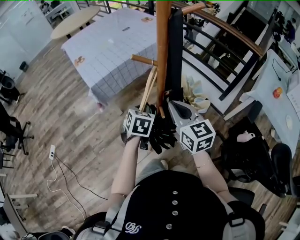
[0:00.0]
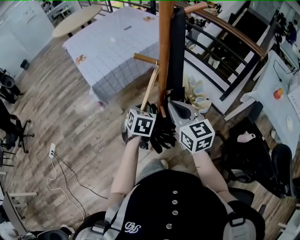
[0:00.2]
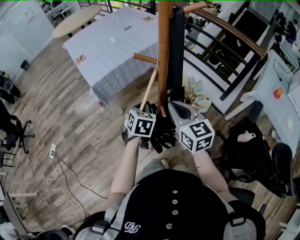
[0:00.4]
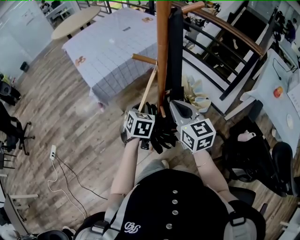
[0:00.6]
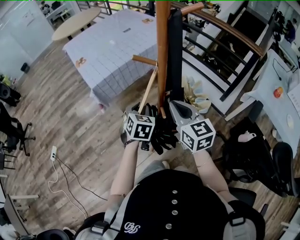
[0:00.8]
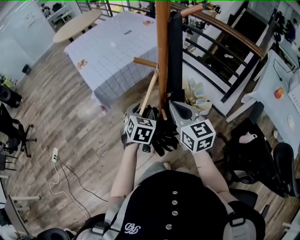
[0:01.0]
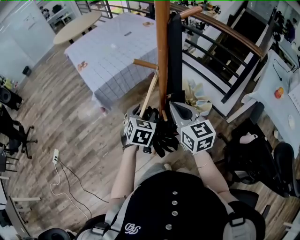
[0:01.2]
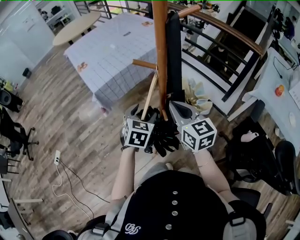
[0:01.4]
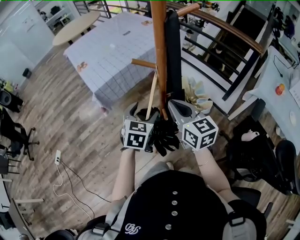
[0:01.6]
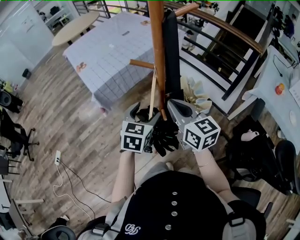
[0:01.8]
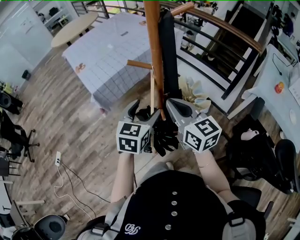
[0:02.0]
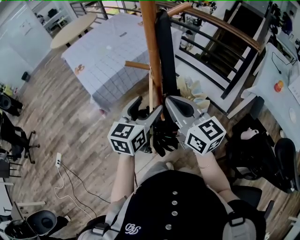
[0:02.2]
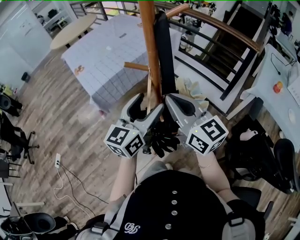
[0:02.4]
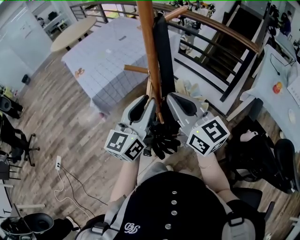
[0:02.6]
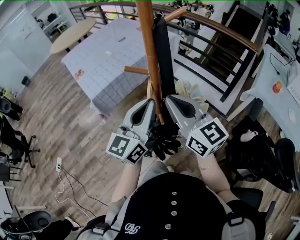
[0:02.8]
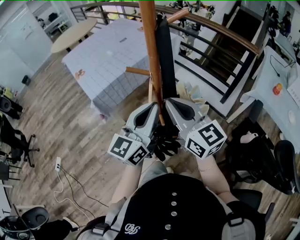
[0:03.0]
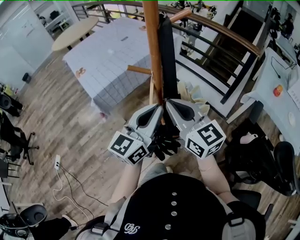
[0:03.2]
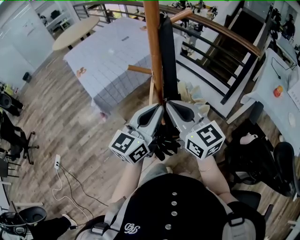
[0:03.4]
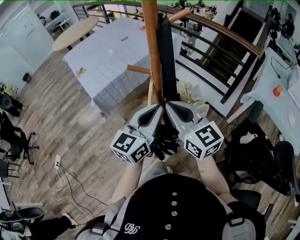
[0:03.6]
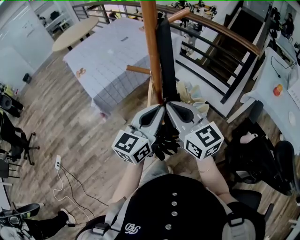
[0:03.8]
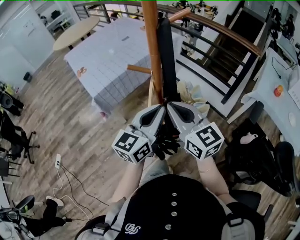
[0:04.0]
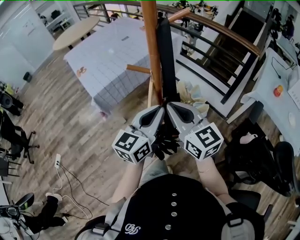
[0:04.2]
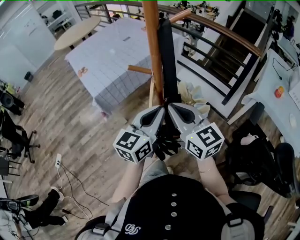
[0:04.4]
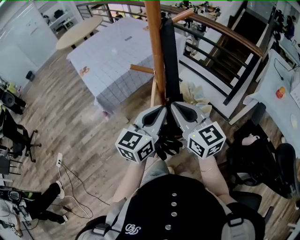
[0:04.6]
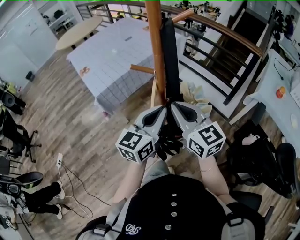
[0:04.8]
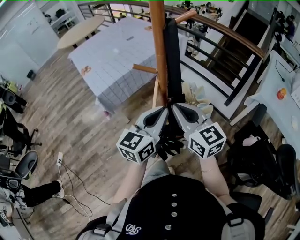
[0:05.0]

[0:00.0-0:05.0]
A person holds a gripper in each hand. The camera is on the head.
0:00.0 to 0:01.6: The left gripper travels upward by roughly 5 cm, and opens its fingers.
0:01.6 to 0:03.4: The right gripper moves upward, some 5 cm; the left gripper heads upward and to the right, covering about 15 cm, tips its fingers upward by roughly 40 degrees, and closes its fingers.
0:03.4 to 0:05.0: There are only small adjustments of the grippers.

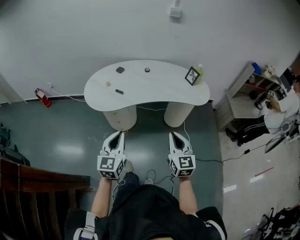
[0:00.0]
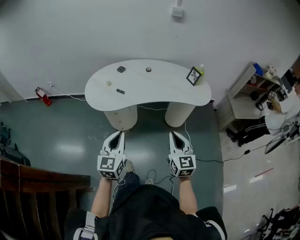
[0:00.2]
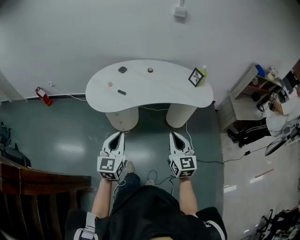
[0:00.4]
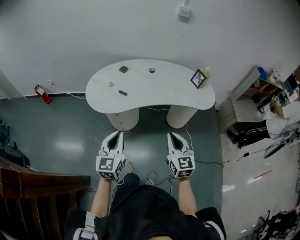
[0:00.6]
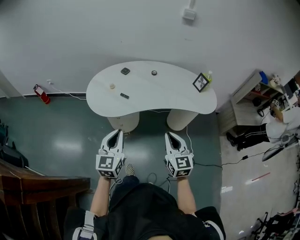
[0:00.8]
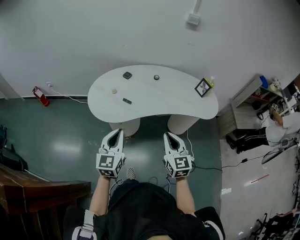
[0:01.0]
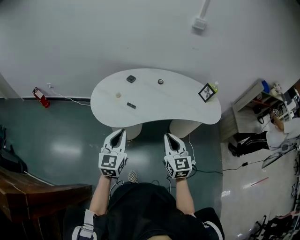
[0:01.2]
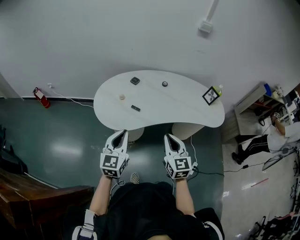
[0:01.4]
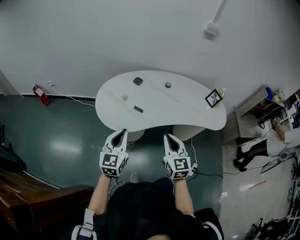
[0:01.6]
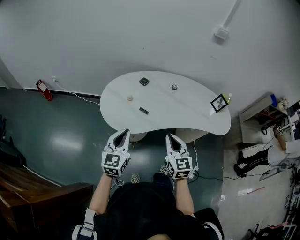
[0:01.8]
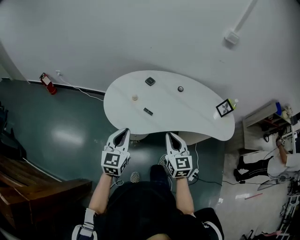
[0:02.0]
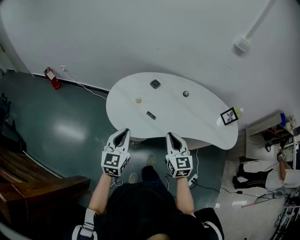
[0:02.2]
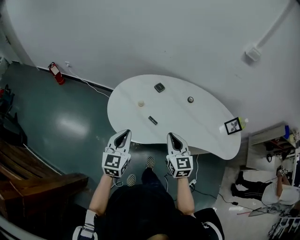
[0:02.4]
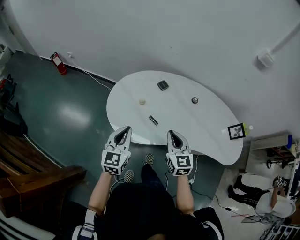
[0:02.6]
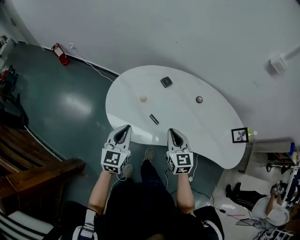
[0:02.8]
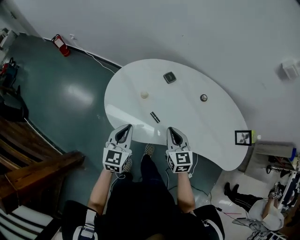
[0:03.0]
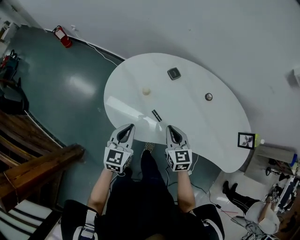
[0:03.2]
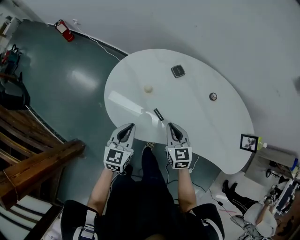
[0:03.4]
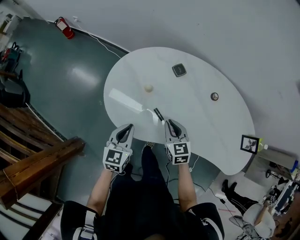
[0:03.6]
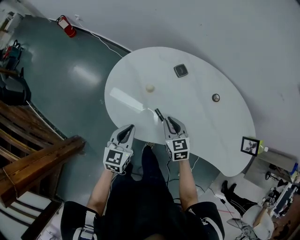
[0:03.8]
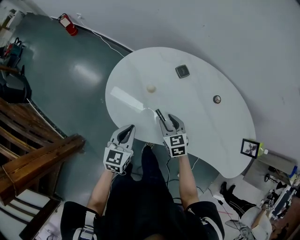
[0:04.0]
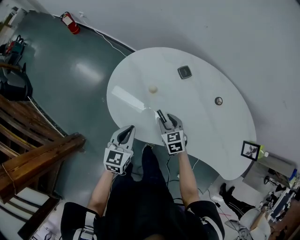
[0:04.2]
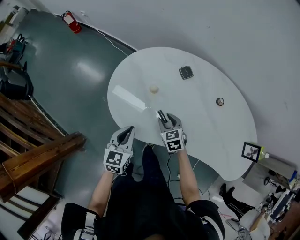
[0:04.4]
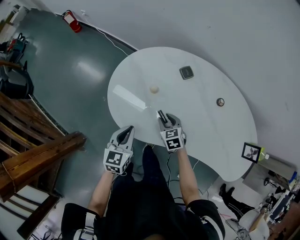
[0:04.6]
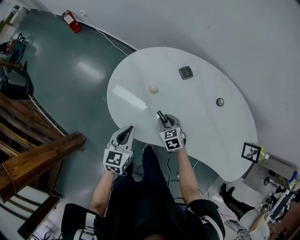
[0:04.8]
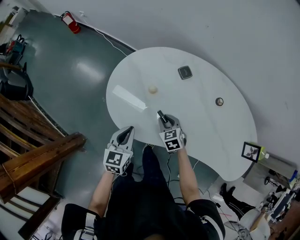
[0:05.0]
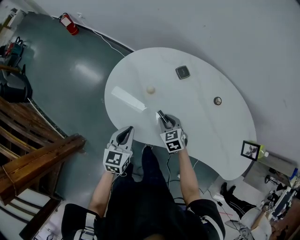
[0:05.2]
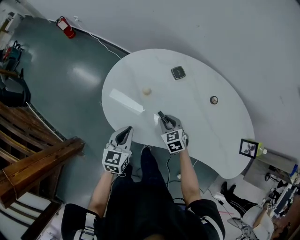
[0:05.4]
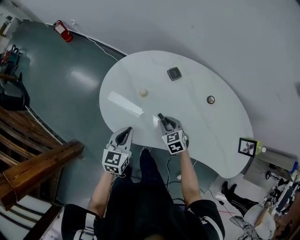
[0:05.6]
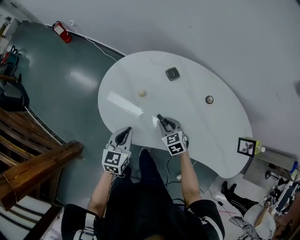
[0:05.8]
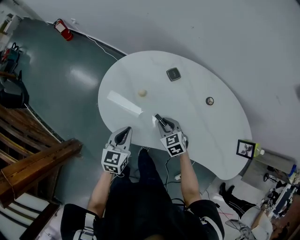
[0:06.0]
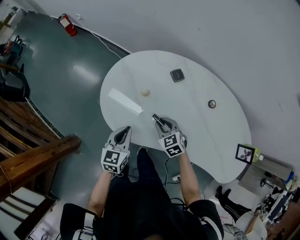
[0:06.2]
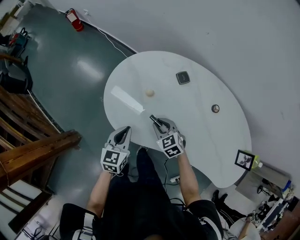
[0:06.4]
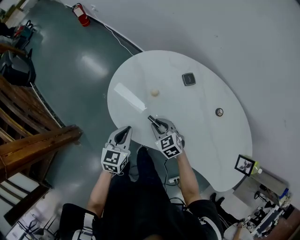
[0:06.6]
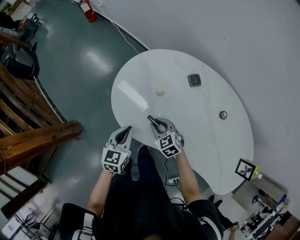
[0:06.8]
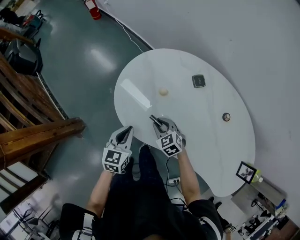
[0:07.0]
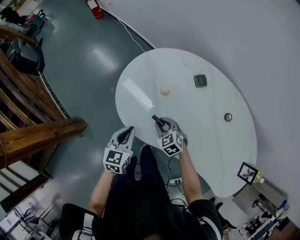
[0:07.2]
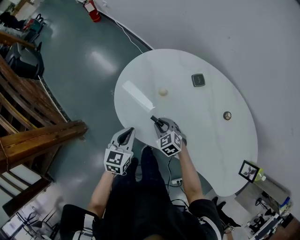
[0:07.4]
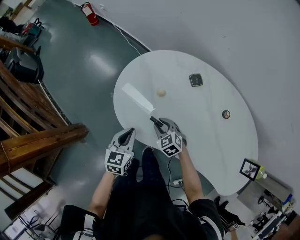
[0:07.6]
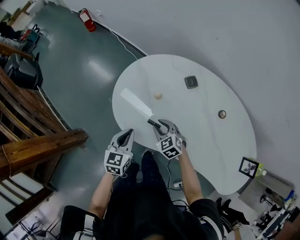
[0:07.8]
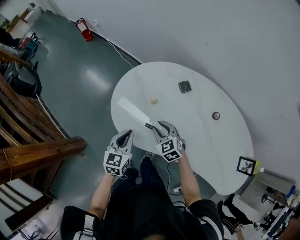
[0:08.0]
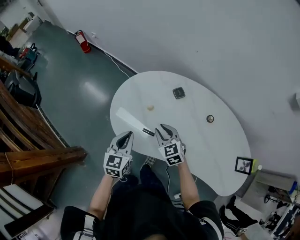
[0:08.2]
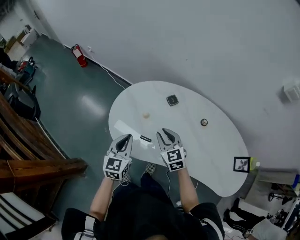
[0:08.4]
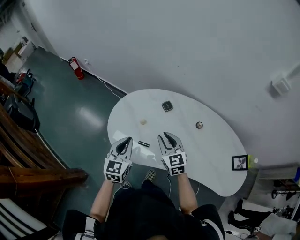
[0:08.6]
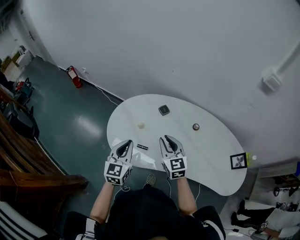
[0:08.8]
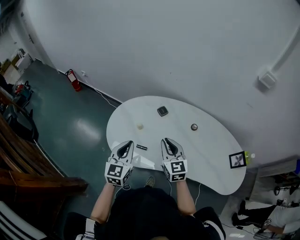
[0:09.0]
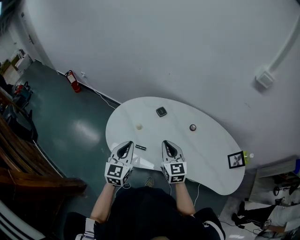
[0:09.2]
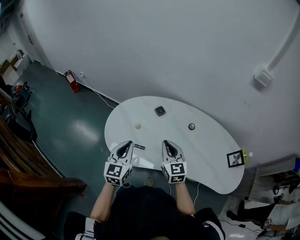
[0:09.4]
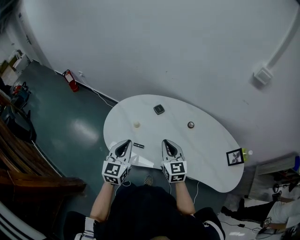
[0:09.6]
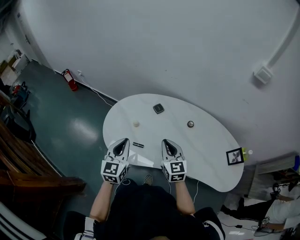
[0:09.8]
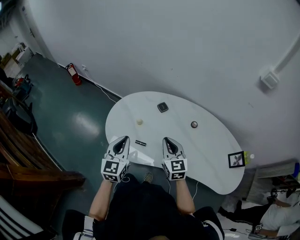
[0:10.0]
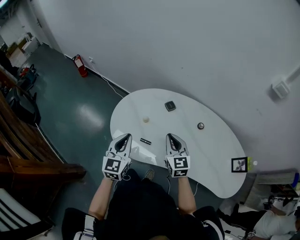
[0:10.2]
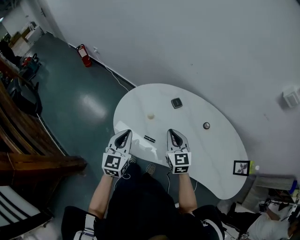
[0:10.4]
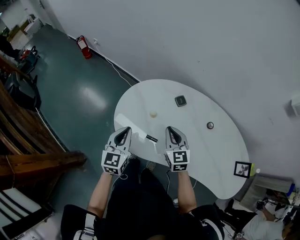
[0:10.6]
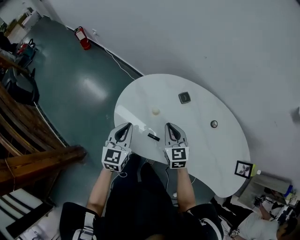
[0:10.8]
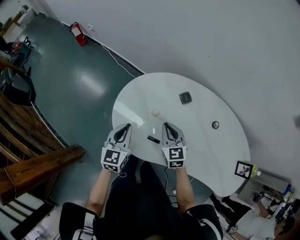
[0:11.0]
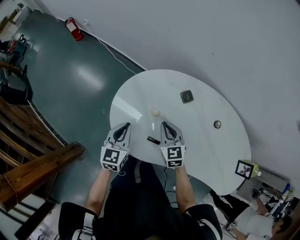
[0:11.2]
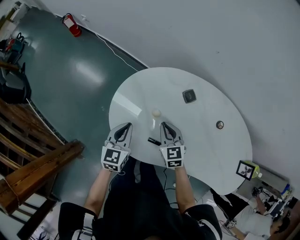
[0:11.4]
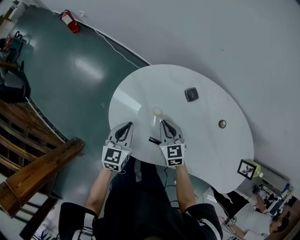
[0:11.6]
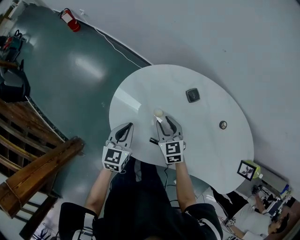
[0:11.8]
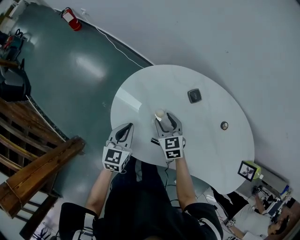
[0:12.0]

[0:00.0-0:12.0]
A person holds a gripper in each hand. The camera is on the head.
0:00.0 to 0:01.6: The left gripper moves forward and to the left, approximately 30 cm. Meanwhile the right gripper is displaced to the left and forward by some 30 cm.
0:01.6 to 0:03.0: Both grippers travel together forward and downward, roughly 25 cm. The left gripper turns by approximately 20 degrees. Meanwhile the right gripper rotates about 30 degrees.
0:03.0 to 0:04.4: The left gripper is displaced downward by some 10 cm. Meanwhile the right gripper moves downward and forward, about 20 cm, swivels about 30 degrees, and opens its fingers.
0:04.4 to 0:06.0: The right gripper ends up approximately 5 cm from where it was.
0:06.0 to 0:07.6: The right gripper shifts roughly 10 cm to the left, and turns by roughly 20 degrees.
0:07.6 to 0:09.0: The left gripper goes approximately 20 cm upward, and changes its angle by some 30 degrees. The right gripper moves upward and to the right, some 30 cm, and tilts its fingers about 30 degrees upward.
0:09.0 to 0:10.4: The left gripper is displaced to the left by roughly 5 cm. Meanwhile the right gripper goes approximately 5 cm forward.
0:10.4 to 0:12.0: The right gripper is displaced downward, forward and to the left by roughly 25 cm, turns by some 20 degrees, and opens up, while the left gripper travels downward and forward by approximately 20 cm.

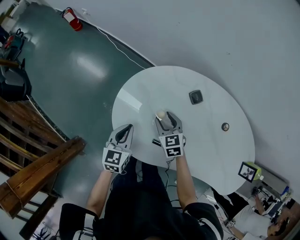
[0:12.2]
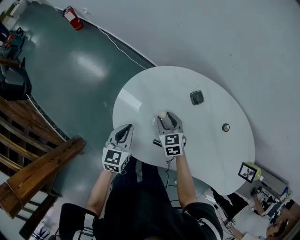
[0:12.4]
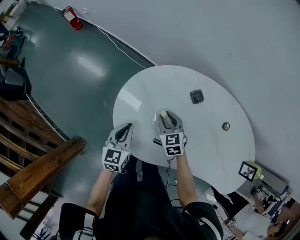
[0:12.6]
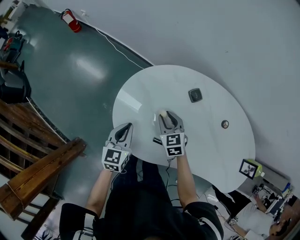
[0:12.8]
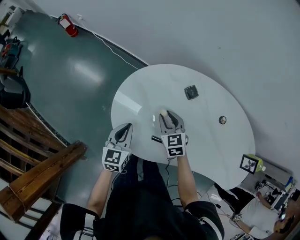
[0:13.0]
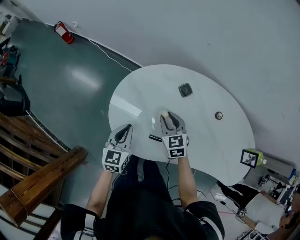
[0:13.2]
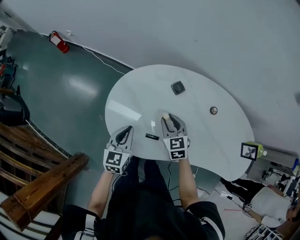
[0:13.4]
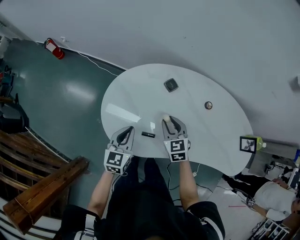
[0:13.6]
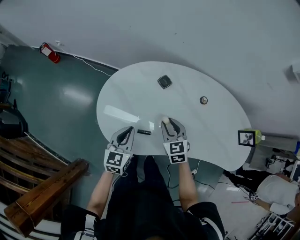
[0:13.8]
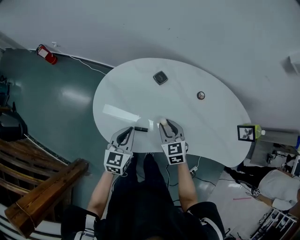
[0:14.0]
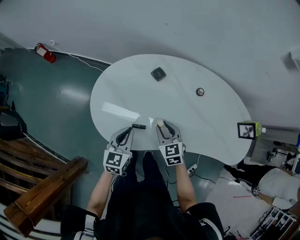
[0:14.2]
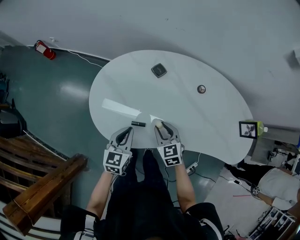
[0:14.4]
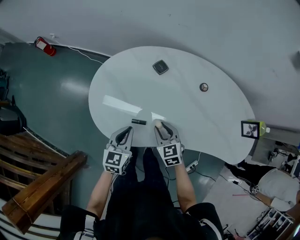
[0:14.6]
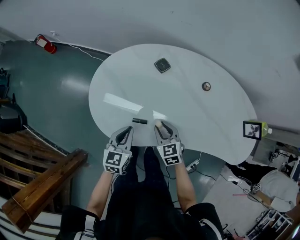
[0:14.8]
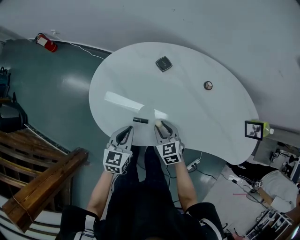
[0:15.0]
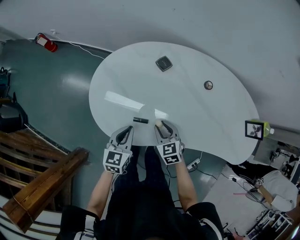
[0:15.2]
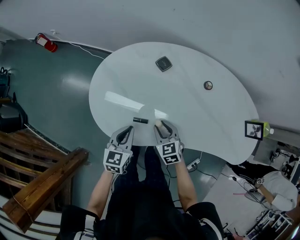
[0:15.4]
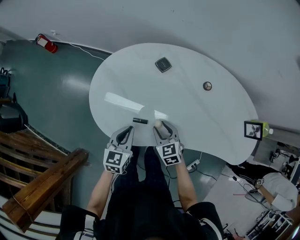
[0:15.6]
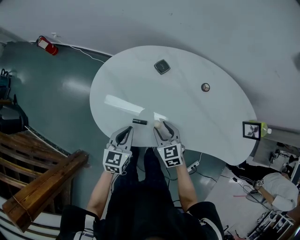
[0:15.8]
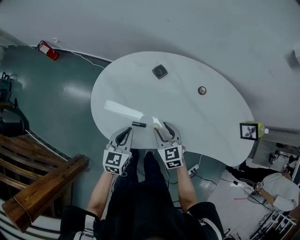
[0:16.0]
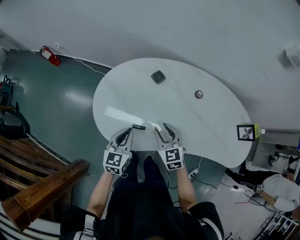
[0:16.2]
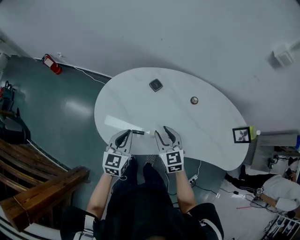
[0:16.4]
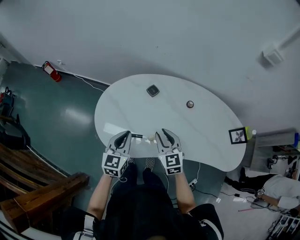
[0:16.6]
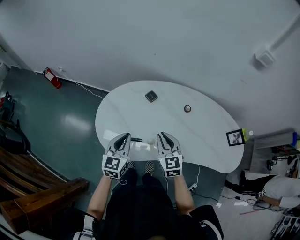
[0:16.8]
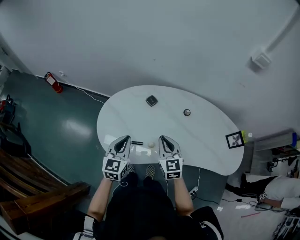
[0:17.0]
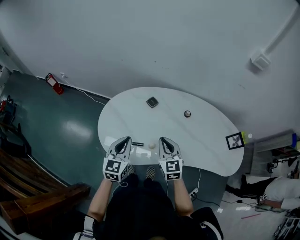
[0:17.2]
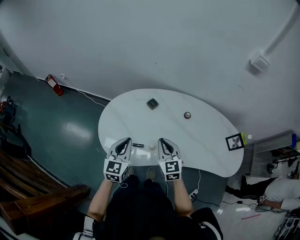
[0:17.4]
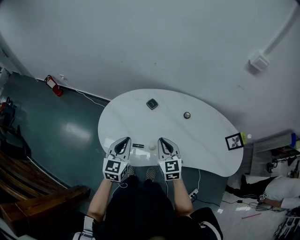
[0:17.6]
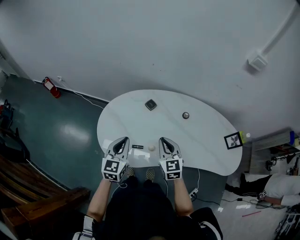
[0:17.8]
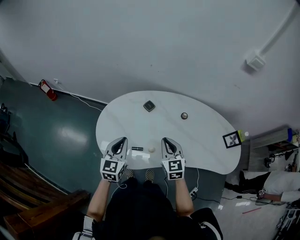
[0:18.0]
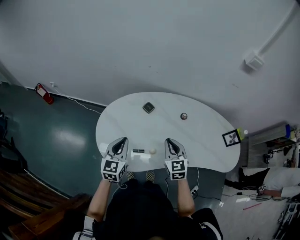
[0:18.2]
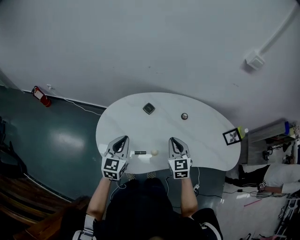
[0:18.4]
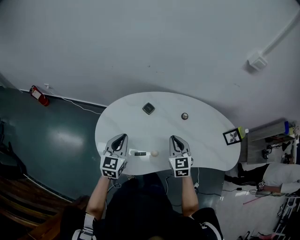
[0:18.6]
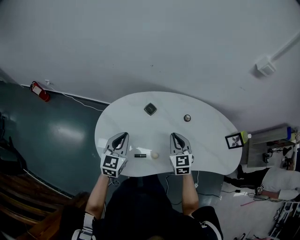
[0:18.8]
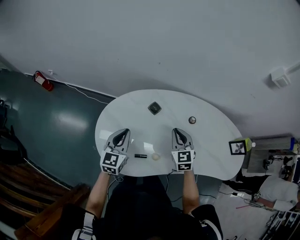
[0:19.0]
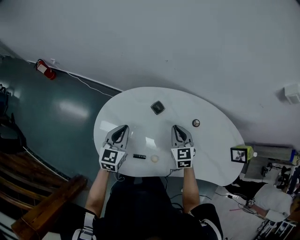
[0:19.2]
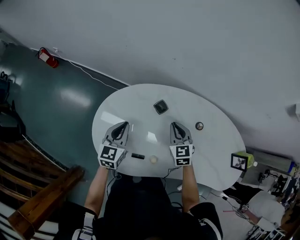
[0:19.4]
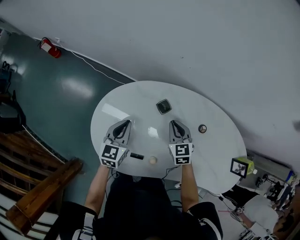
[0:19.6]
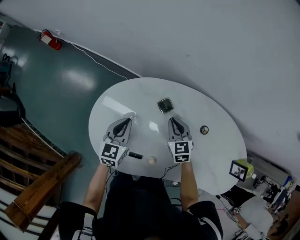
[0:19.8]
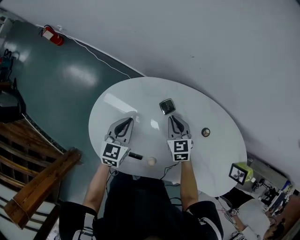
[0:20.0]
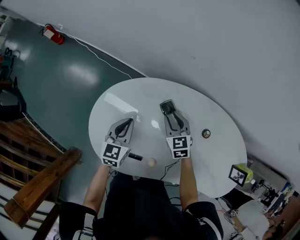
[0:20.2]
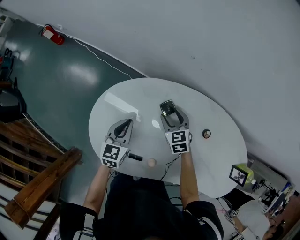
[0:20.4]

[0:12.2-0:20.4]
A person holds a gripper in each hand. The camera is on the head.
0:12.2 to 0:13.8: The right gripper moves to the right, backward and upward, some 20 cm. Meanwhile the left gripper goes about 15 cm to the right, upward and backward.
0:13.8 to 0:15.4: The left gripper goes some 5 cm downward. The right gripper goes about 15 cm downward and backward.
0:15.4 to 0:17.2: Both grippers move upward, approximately 20 cm. The right gripper changes its angle by about 30 degrees, and closes.
0:17.2 to 0:18.8: The left gripper travels forward and to the left by approximately 15 cm. The right gripper is displaced forward by some 10 cm.
0:18.8 to 0:20.4: The left gripper travels downward and forward by roughly 20 cm, and changes its angle by about 20 degrees; the right gripper moves forward and downward, roughly 25 cm, changes its angle by about 30 degrees, and opens up.
